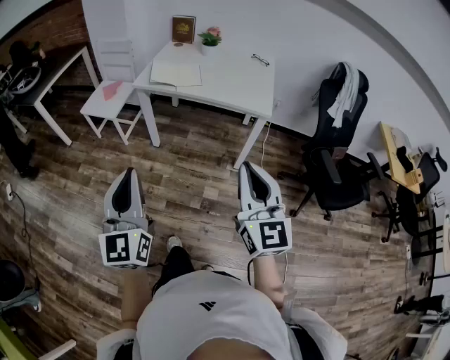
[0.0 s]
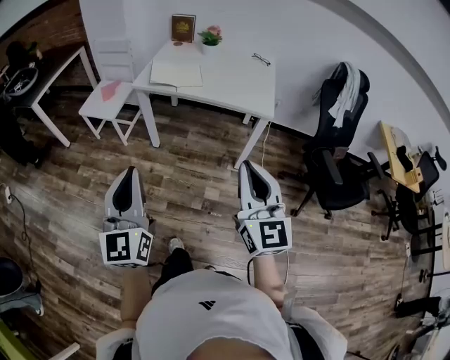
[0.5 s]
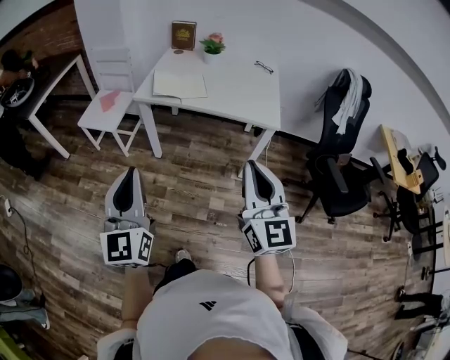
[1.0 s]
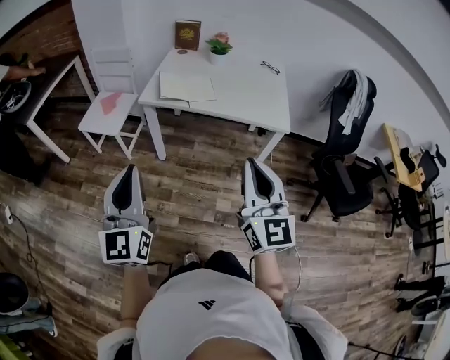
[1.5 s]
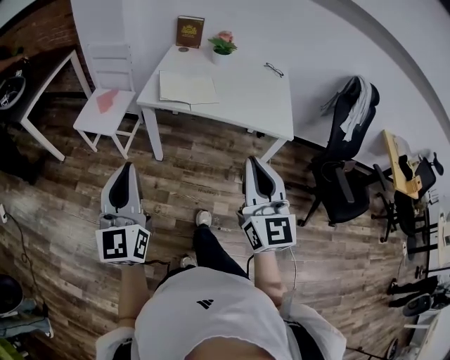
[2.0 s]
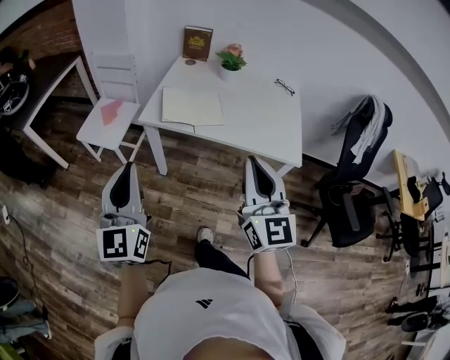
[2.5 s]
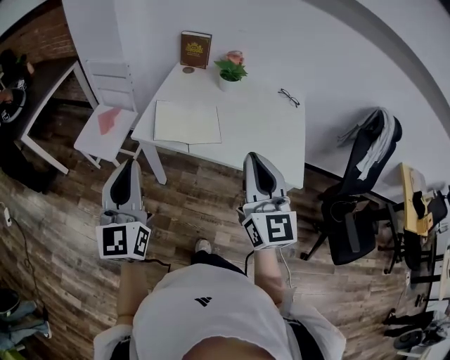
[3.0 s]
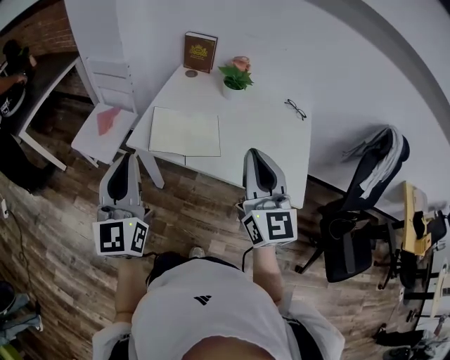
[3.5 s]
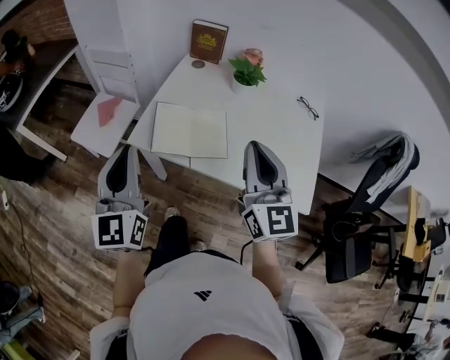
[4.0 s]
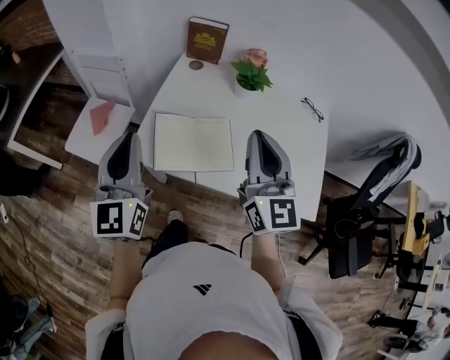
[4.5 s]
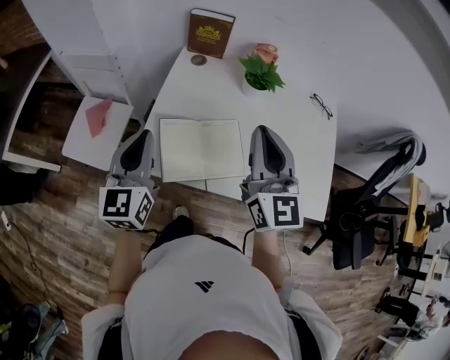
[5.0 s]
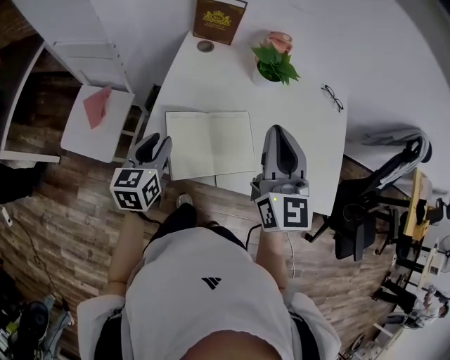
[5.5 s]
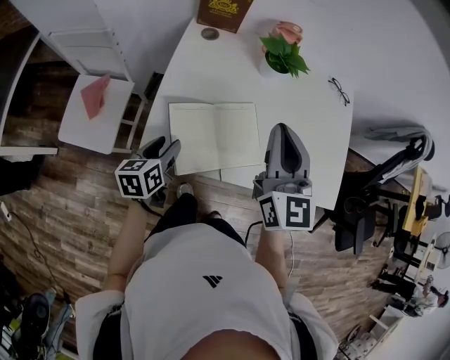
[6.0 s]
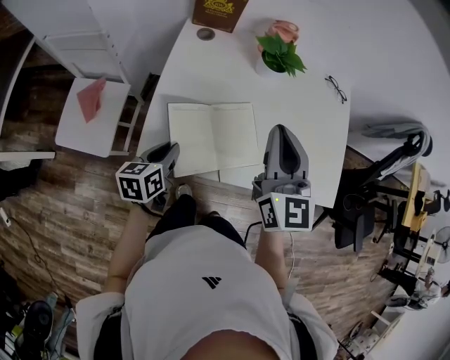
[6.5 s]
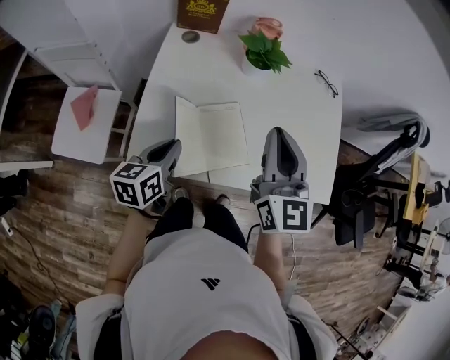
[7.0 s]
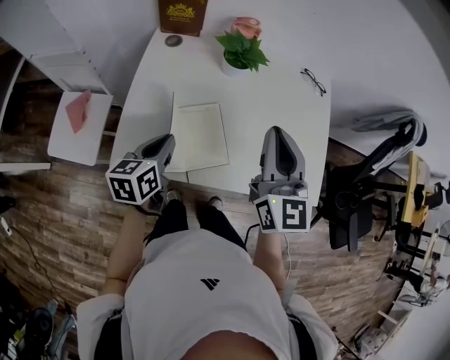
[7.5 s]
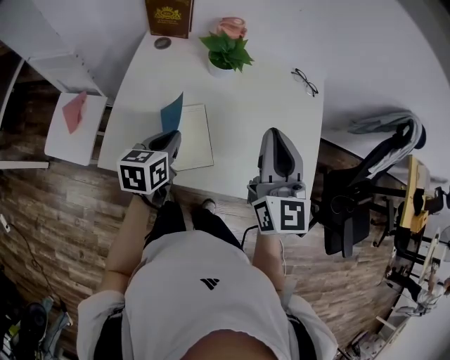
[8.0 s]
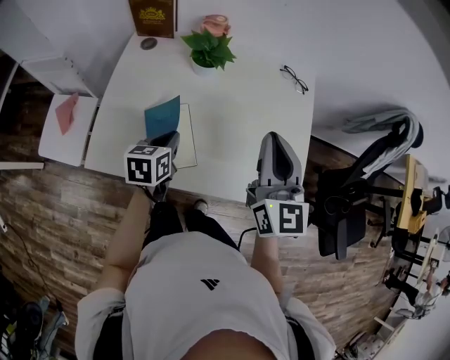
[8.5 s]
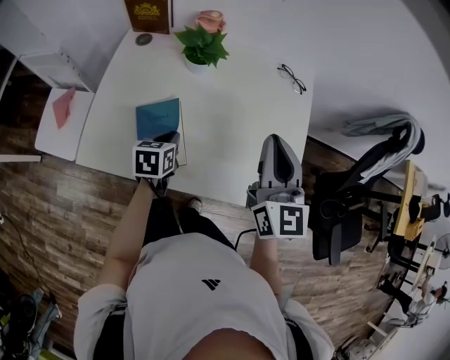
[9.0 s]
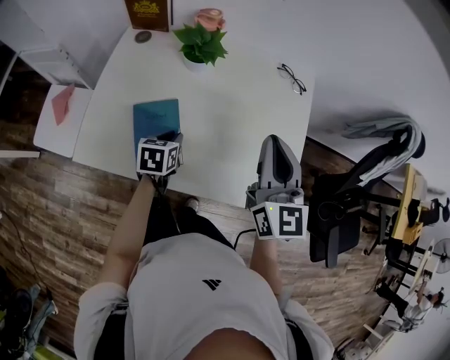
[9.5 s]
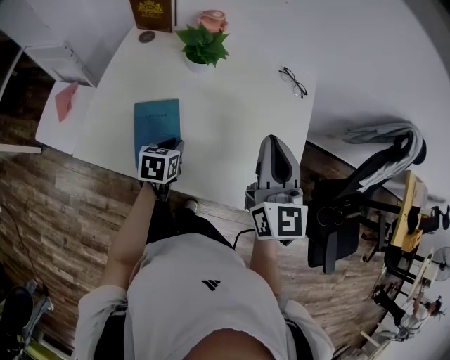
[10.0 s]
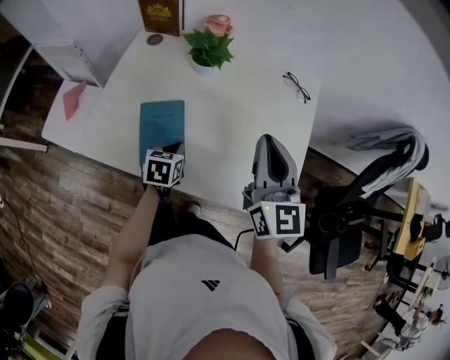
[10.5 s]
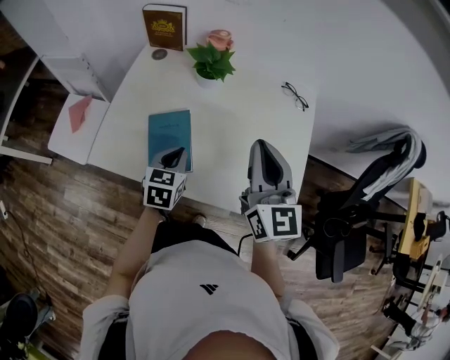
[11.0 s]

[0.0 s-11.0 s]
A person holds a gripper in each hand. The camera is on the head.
0.0 to 2.0 s: Both grippers travel together forward and to the left, roughly 20 cm.
2.0 to 3.5 s: The grippers both shift forward by some 30 cm.
3.5 to 5.5 s: The right gripper is displaced forward by some 25 cm; the left gripper is displaced forward and downward by about 35 cm, tilts its fingers some 40 degrees downward, and opens.
5.5 to 7.5 s: The grippers both shift to the right by approximately 10 cm. The left gripper closes up.
7.5 to 9.0 s: The right gripper goes approximately 15 cm to the right, while the left gripper shifts roughly 15 cm to the right, downward and forward.
9.0 to 11.0 s: The left gripper shifts by approximately 5 cm.

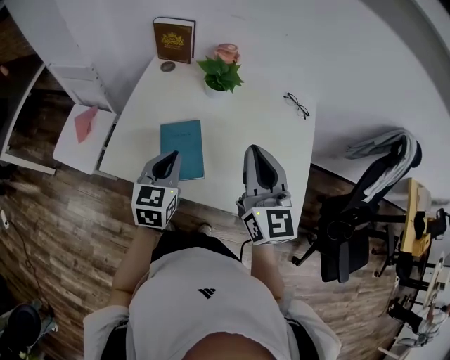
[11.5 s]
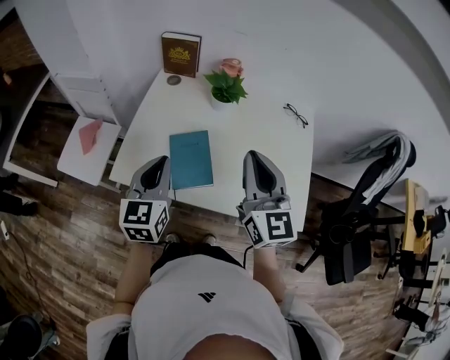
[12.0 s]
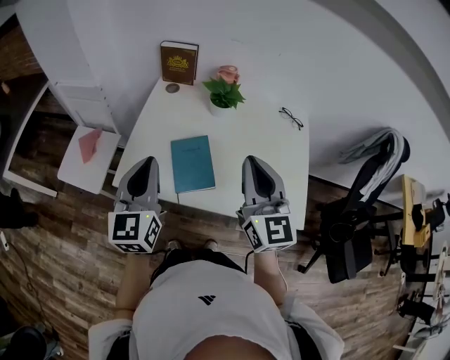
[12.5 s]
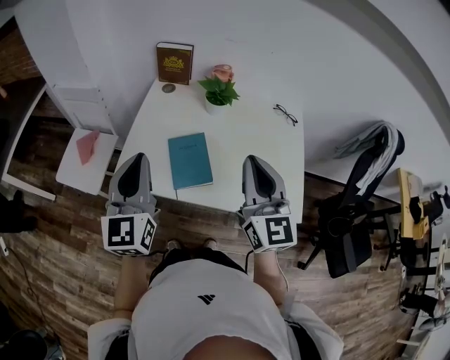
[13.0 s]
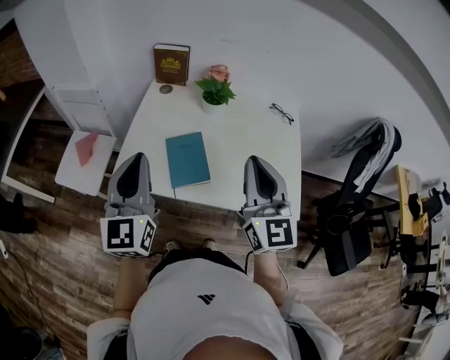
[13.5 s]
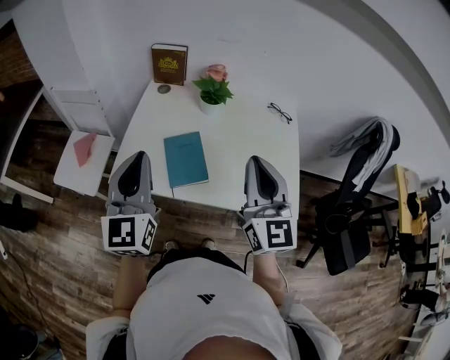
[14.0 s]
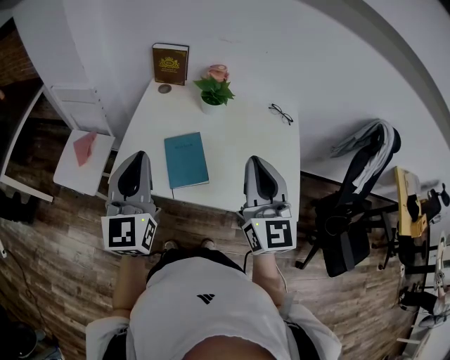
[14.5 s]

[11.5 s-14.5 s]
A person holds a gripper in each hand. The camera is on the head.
11.5 to 13.0 s: The right gripper moves backward, some 5 cm, while the left gripper is displaced upward, to the left and backward by some 20 cm, and turns by approximately 30 degrees.
13.0 to 14.5 s: The grippers move only a little.

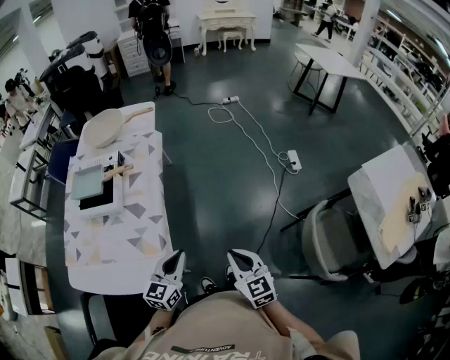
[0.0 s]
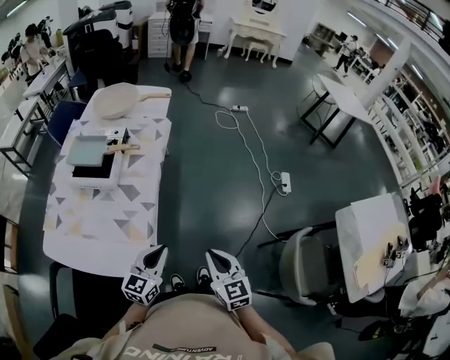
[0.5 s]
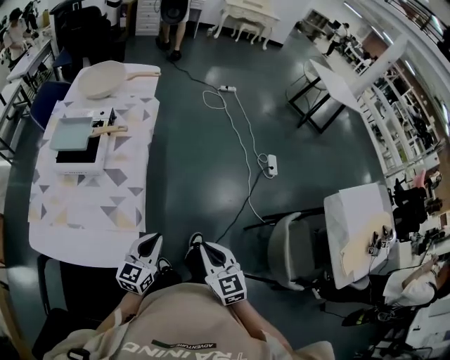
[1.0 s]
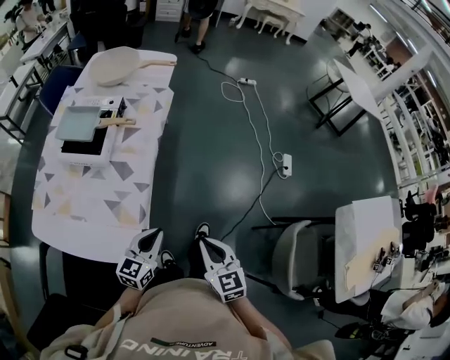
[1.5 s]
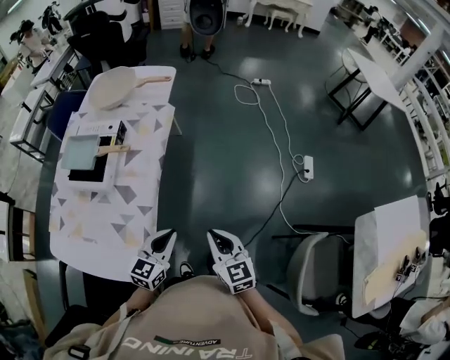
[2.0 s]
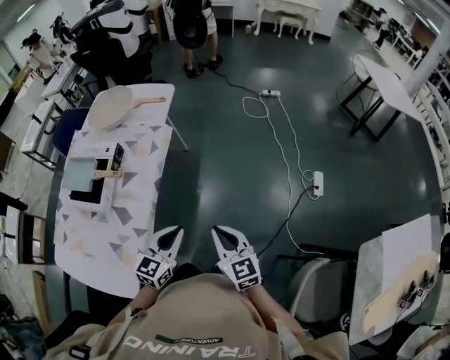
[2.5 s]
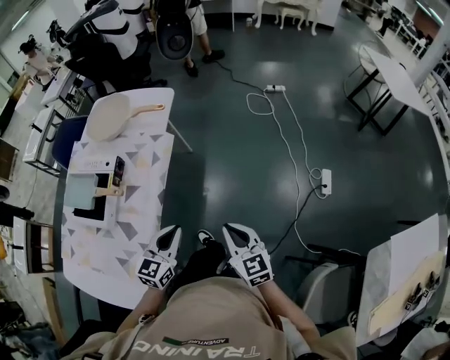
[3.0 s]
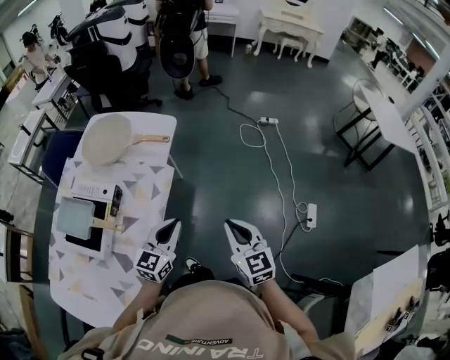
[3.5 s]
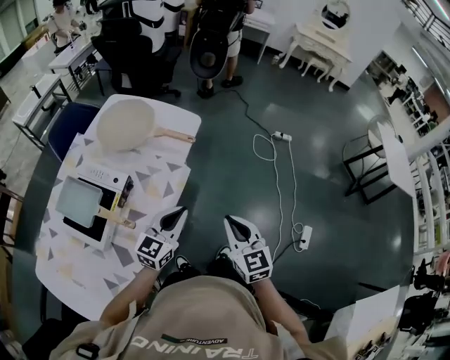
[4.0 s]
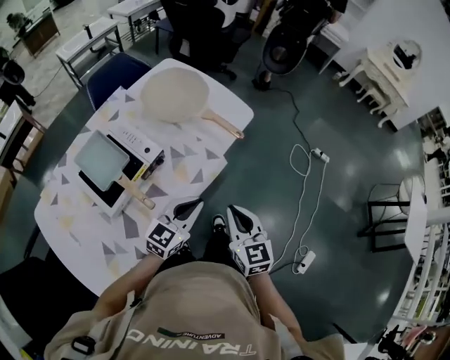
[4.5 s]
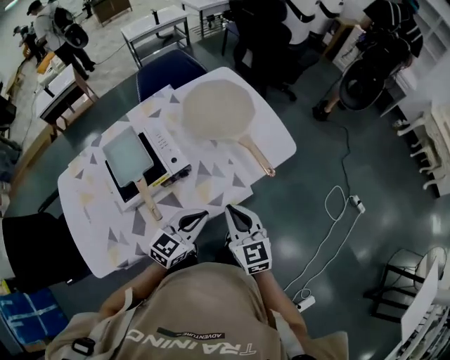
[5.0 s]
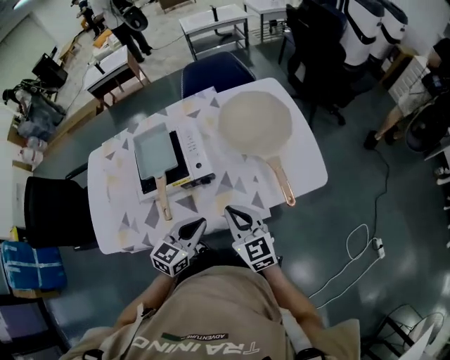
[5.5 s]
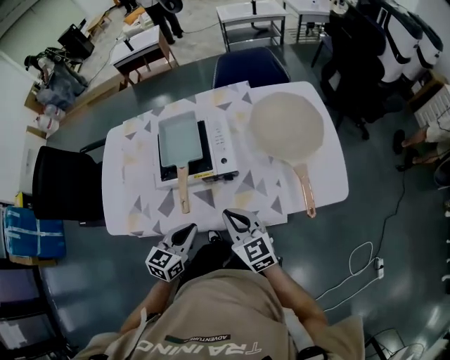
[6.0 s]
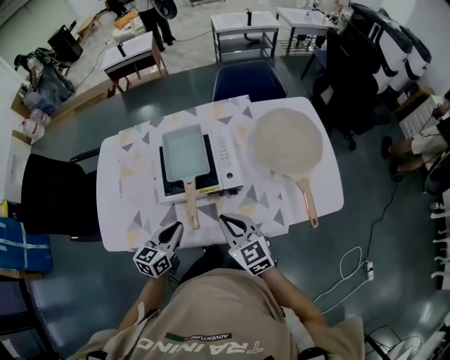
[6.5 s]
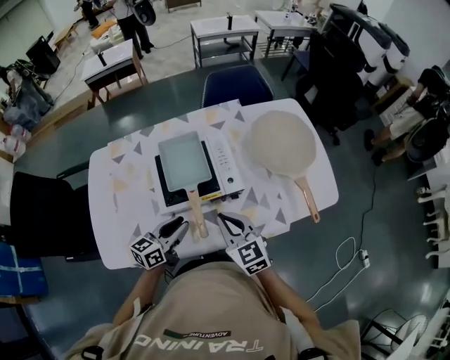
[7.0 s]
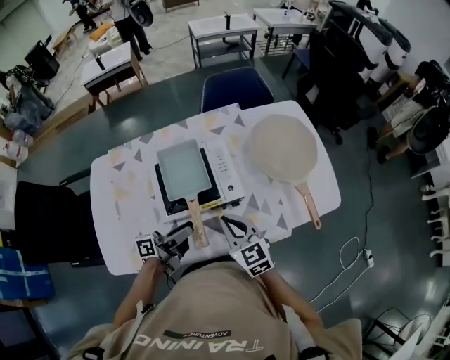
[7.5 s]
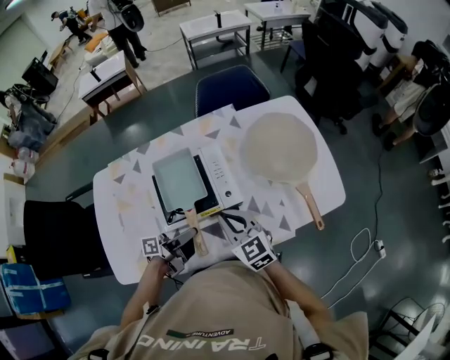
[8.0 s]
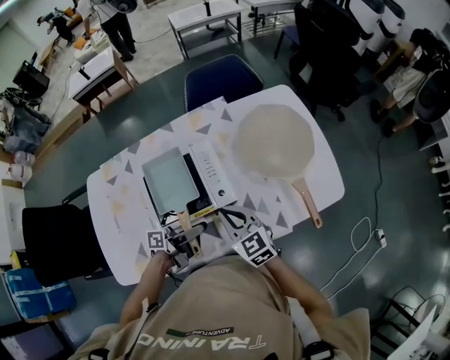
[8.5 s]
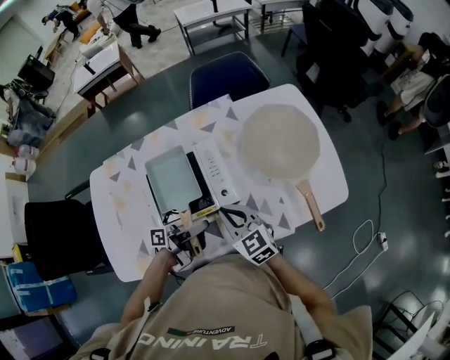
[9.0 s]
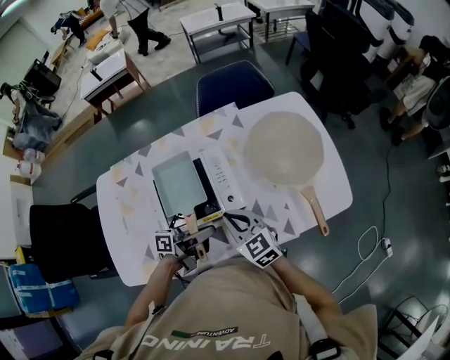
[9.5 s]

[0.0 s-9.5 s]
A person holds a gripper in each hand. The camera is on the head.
0.0 to 2.0 s: The two grippers go about 15 cm forward.
2.0 to 4.0 s: Both grippers move forward, some 35 cm.
4.0 to 5.5 s: The left gripper shifts by roughly 15 cm, and swivels some 60 degrees, while the right gripper shifts by approximately 25 cm, and rotates some 70 degrees.
5.5 to 7.5 s: The two grippers go about 15 cm to the left and forward. The left gripper rolls counterclockwise, seen from behind, by some 60 degrees, and opens up.
7.5 to 9.5 s: The left gripper is displaced to the right and forward by about 10 cm, and closes. The right gripper moves forward, about 5 cm.

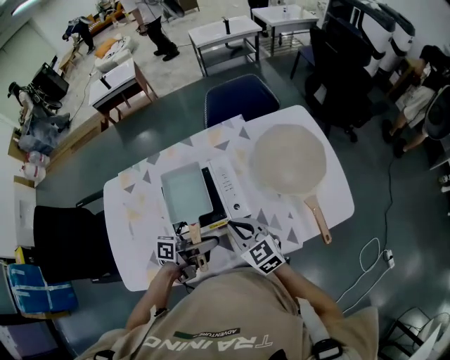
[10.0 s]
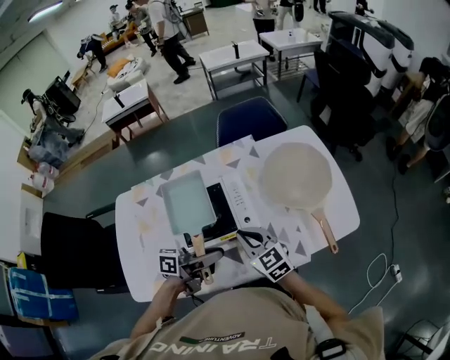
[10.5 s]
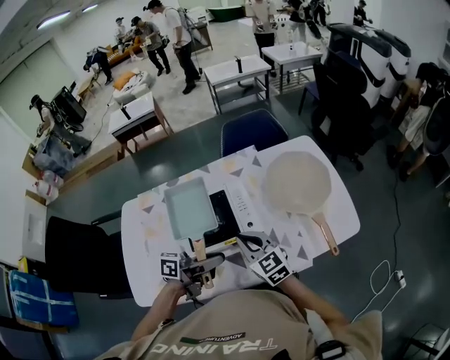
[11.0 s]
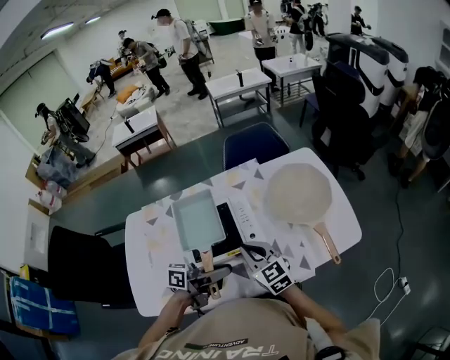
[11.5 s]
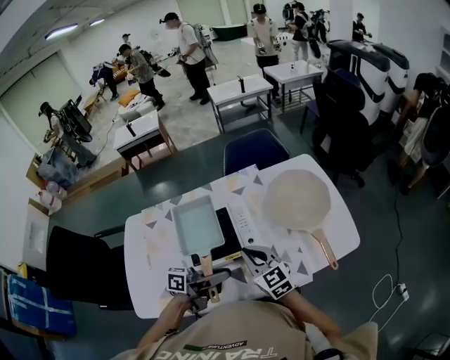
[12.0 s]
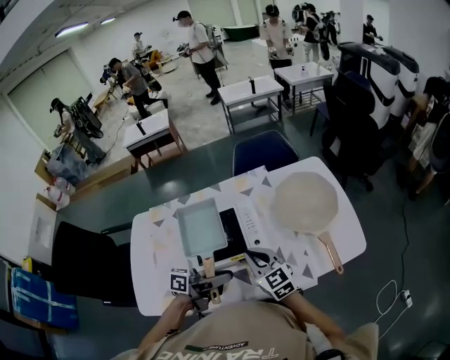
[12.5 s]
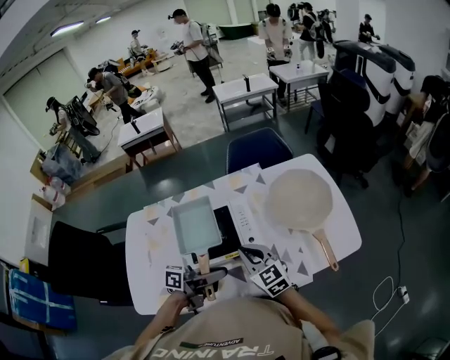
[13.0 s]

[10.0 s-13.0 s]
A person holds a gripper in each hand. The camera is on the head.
10.0 to 11.5 s: The left gripper travels upward by roughly 5 cm.
11.5 to 13.0 s: The grippers stay close to where they were, moving slightly.
